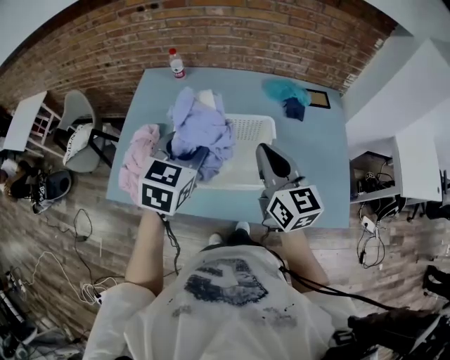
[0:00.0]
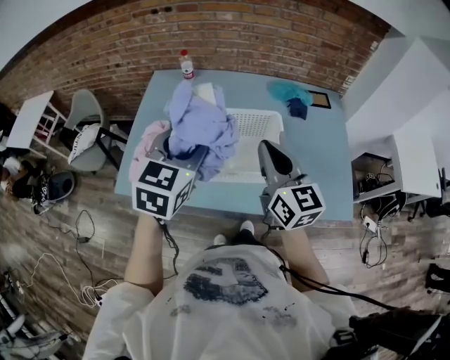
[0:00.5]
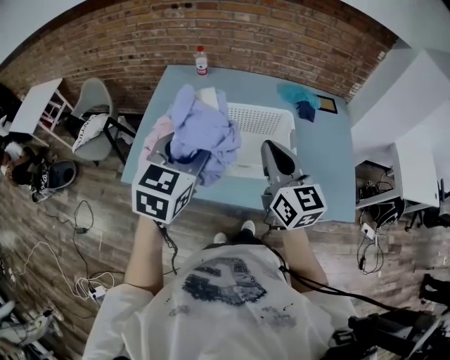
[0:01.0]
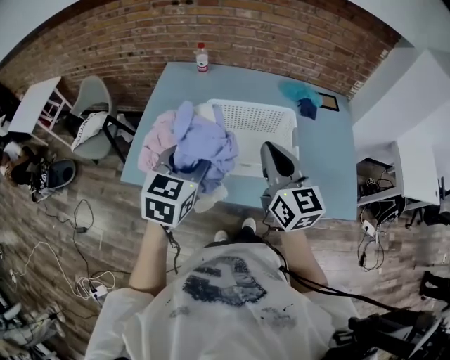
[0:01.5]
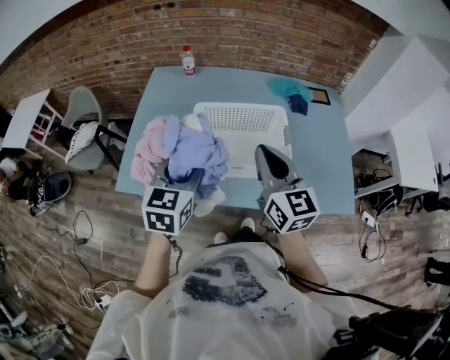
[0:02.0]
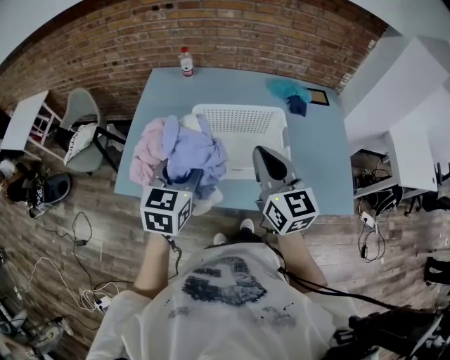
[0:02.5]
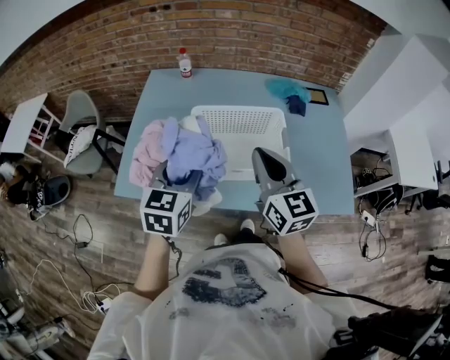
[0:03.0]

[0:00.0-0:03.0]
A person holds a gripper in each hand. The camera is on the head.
0:00.0 to 0:01.5: The left gripper is displaced backward and to the left by about 15 cm. Meanwhile the right gripper goes about 15 cm to the left and backward.
0:01.5 to 0:03.0: There are only small adjustments of the grippers.

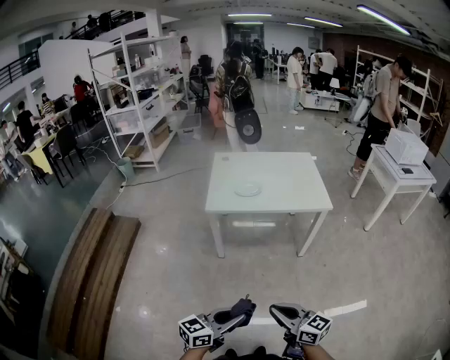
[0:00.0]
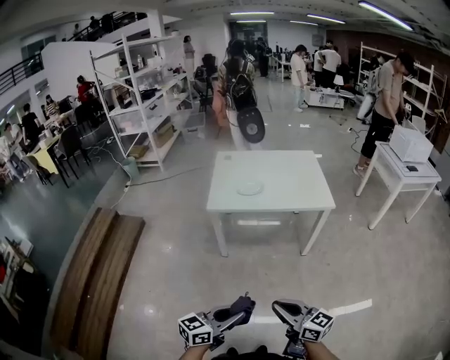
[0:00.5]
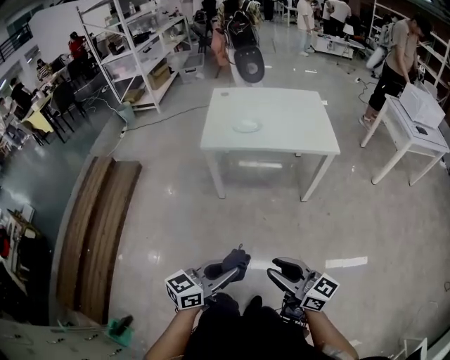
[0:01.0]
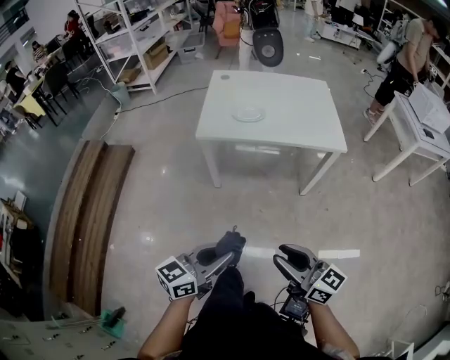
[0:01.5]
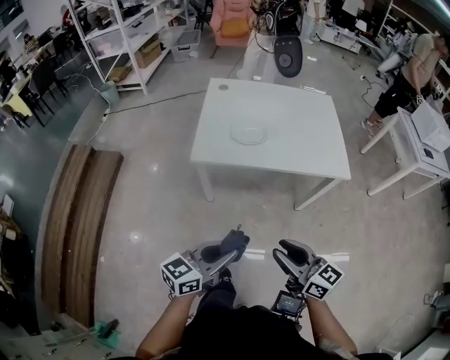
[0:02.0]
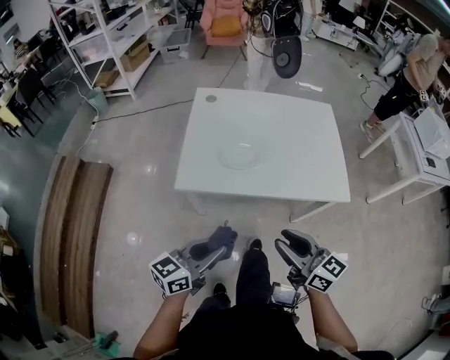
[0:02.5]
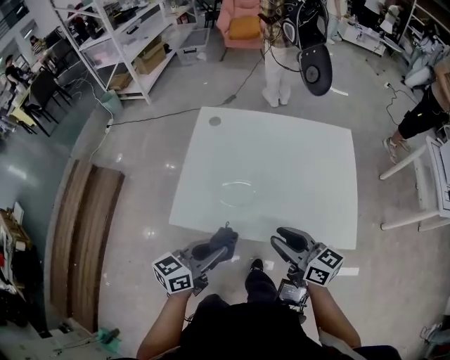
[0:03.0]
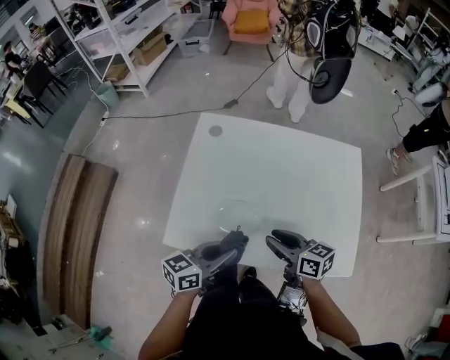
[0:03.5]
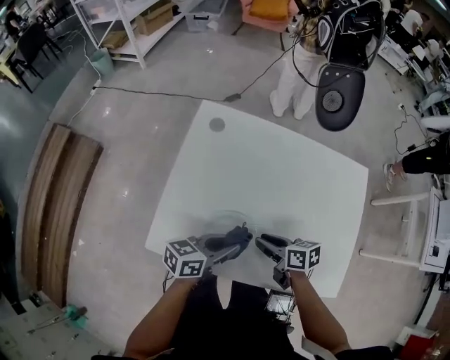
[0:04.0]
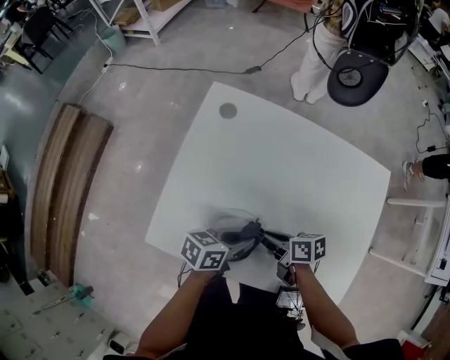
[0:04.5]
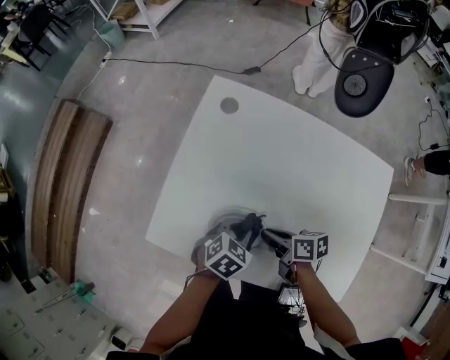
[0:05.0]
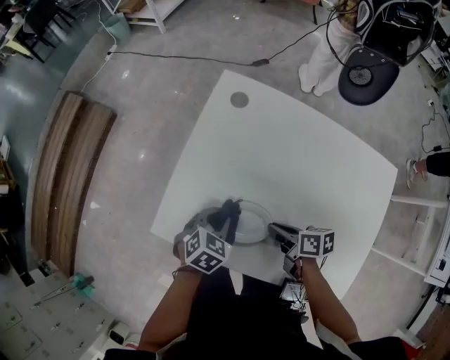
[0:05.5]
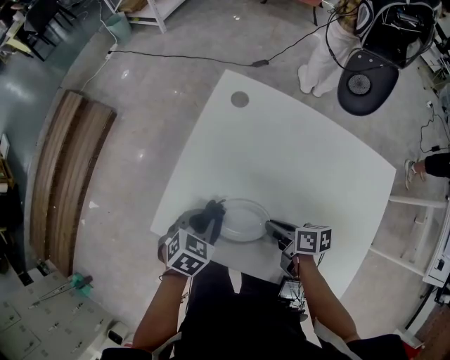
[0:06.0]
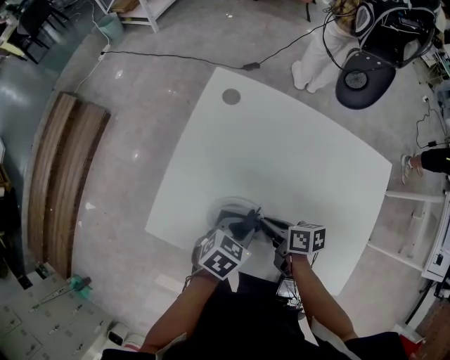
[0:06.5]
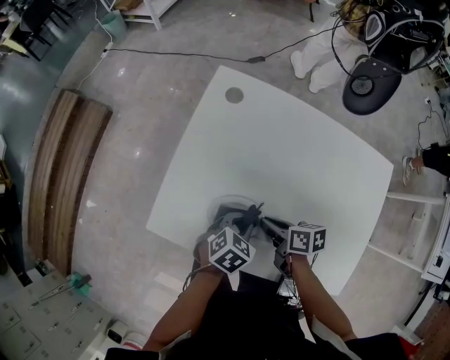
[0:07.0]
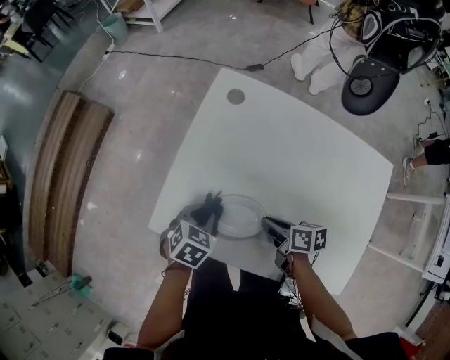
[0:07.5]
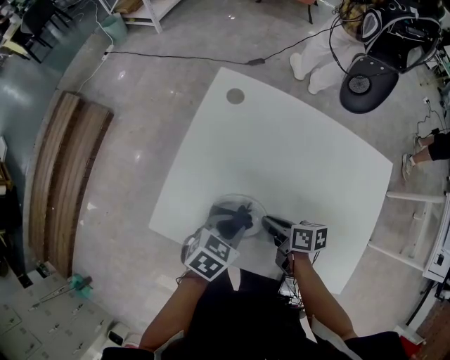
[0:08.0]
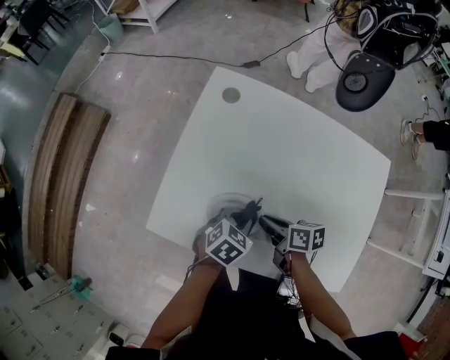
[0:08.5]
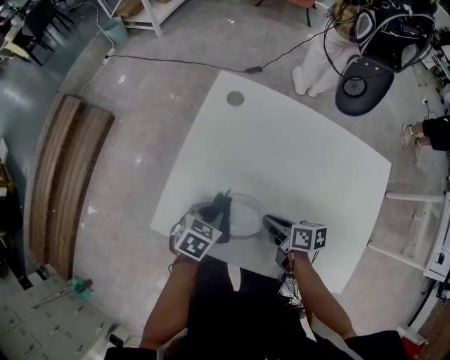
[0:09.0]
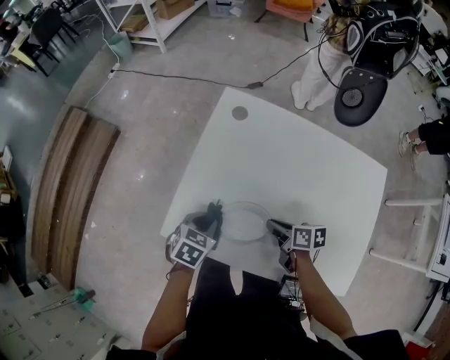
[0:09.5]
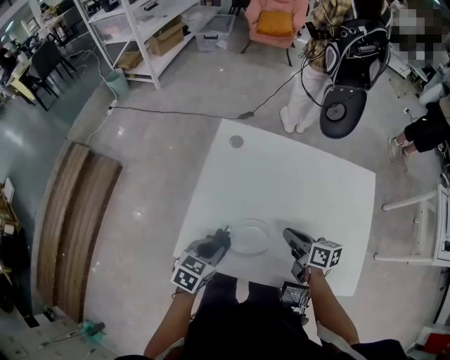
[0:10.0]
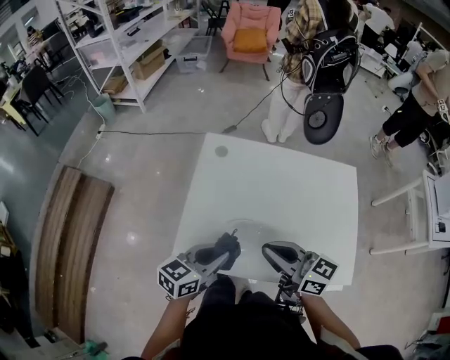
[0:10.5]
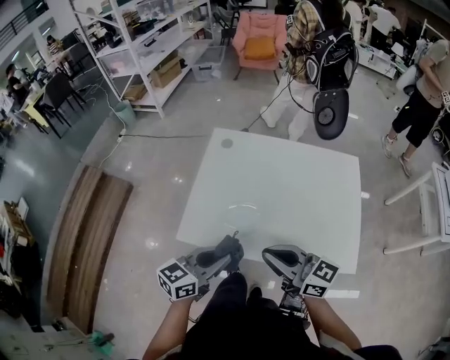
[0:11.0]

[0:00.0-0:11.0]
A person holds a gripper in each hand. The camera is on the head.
0:00.0 to 0:02.0: The two grippers go some 30 cm forward. The right gripper opens.
0:02.0 to 0:03.5: Both grippers are carried forward, roughly 50 cm. The right gripper turns by approximately 20 degrees.
0:03.5 to 0:05.5: Both grippers move downward, roughly 15 cm. The right gripper rotates about 40 degrees, and closes its fingers; the left gripper points its fingers roughly 50 degrees further downward.
0:07.5 to 0:09.0: The left gripper moves approximately 15 cm to the right and comes back.
0:09.0 to 0:11.0: Both grippers travel together upward and backward, some 40 cm. The right gripper angles its fingers upward, by some 40 degrees; the left gripper angles its fingers upward, by approximately 40 degrees.

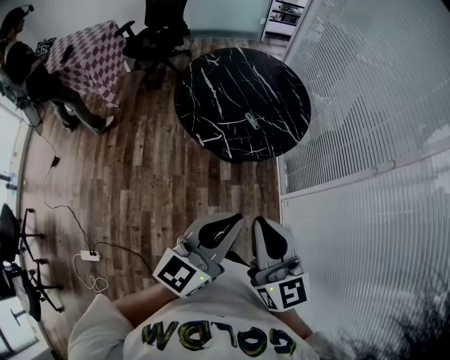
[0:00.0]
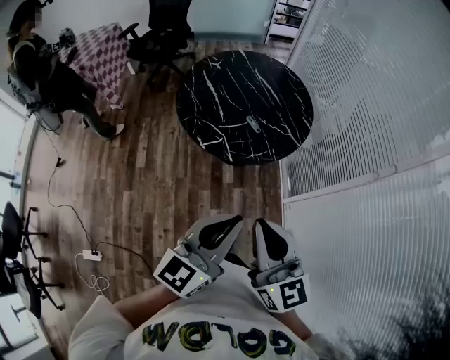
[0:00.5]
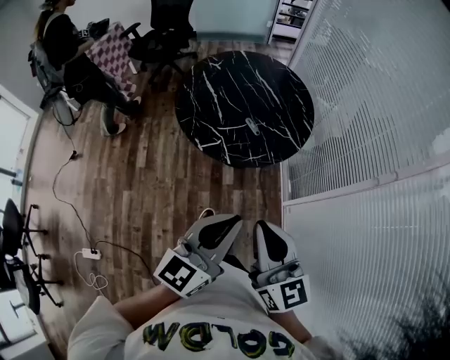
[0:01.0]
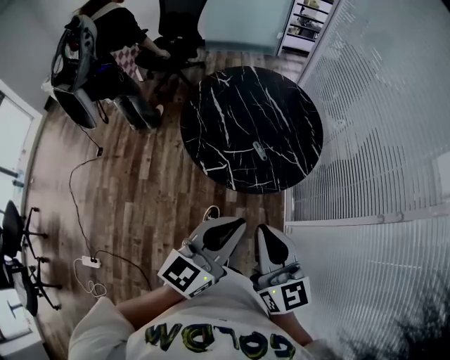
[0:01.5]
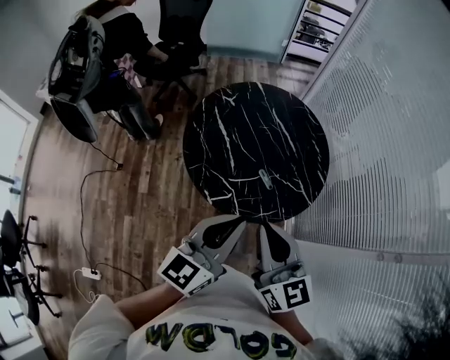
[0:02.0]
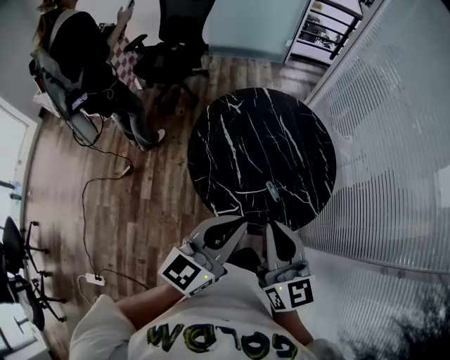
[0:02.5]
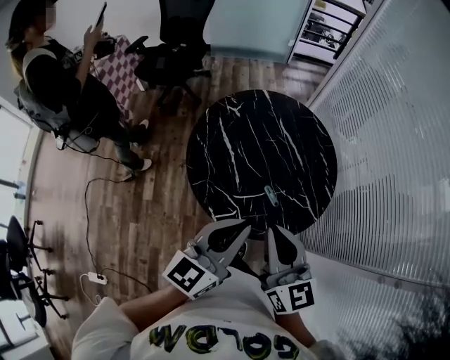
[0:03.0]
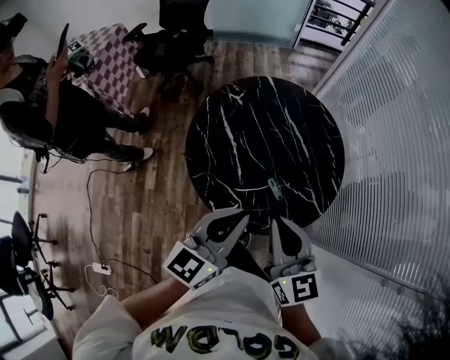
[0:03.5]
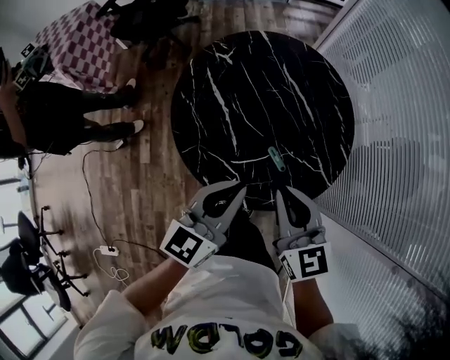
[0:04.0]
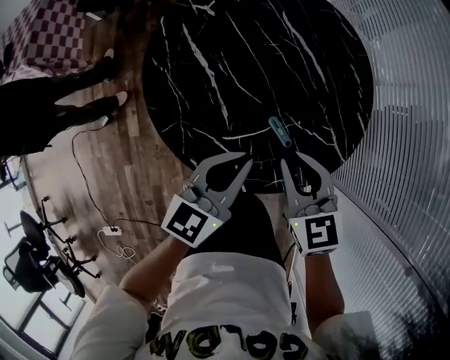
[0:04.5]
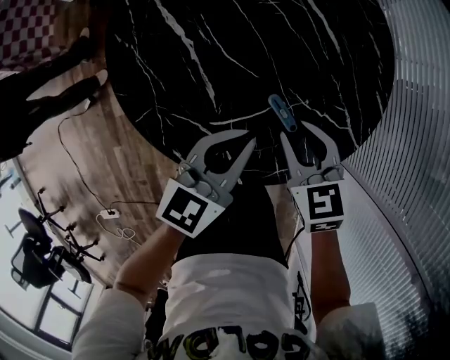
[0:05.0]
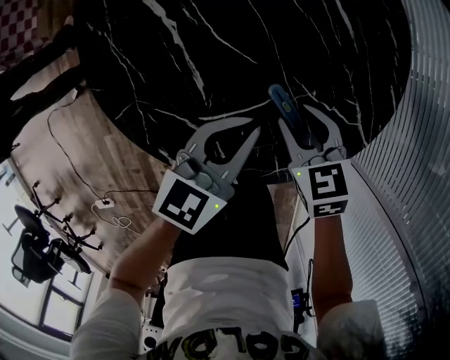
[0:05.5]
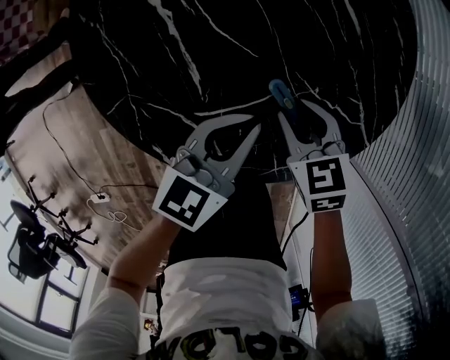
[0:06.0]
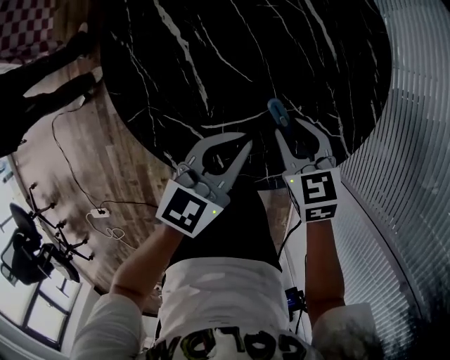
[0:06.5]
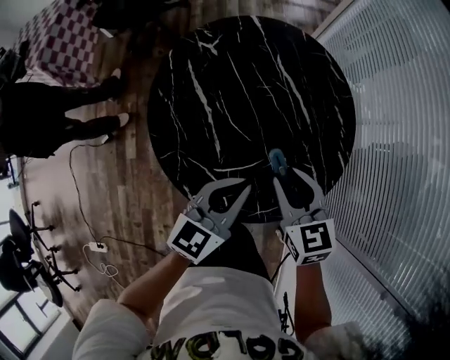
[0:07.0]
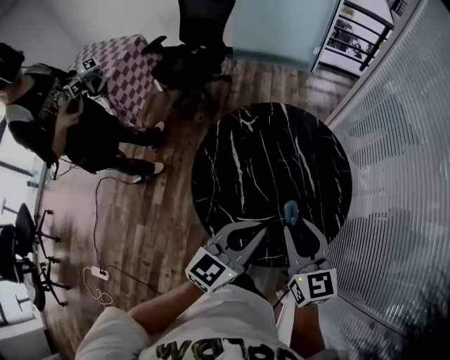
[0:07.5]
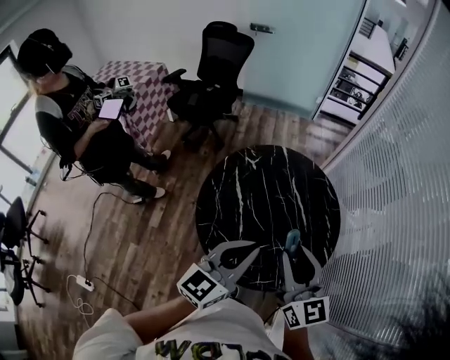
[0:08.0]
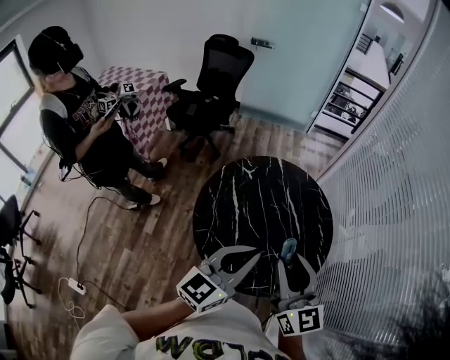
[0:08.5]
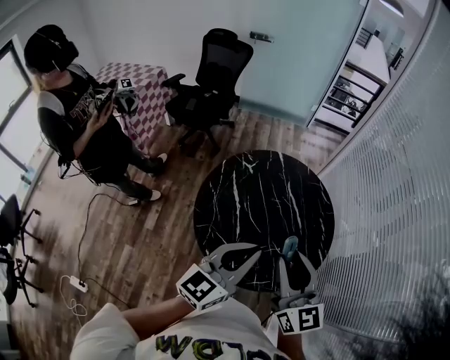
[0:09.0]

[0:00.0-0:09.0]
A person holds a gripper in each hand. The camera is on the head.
0:00.0 to 0:02.0: The two grippers go some 25 cm forward.
0:02.0 to 0:04.5: The grippers both shift downward and forward by roughly 35 cm. The right gripper angles its fingers downward, by roughly 30 degrees.
0:04.5 to 0:07.0: The right gripper travels downward and back again, roughly 20 cm each way. Meanwhile the left gripper reaches about 15 cm downward, then returns.
0:07.0 to 0:09.0: The two grippers go roughly 25 cm upward. The right gripper angles its fingers upward, by some 30 degrees.

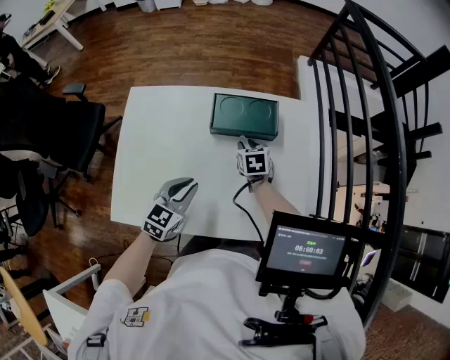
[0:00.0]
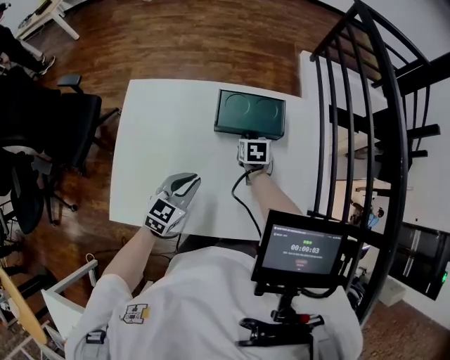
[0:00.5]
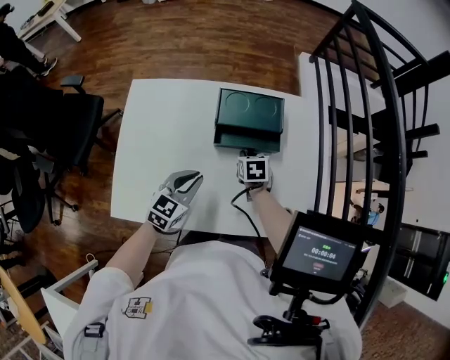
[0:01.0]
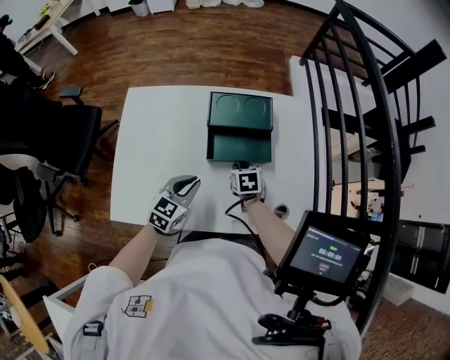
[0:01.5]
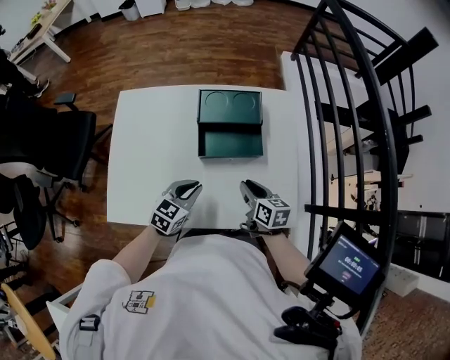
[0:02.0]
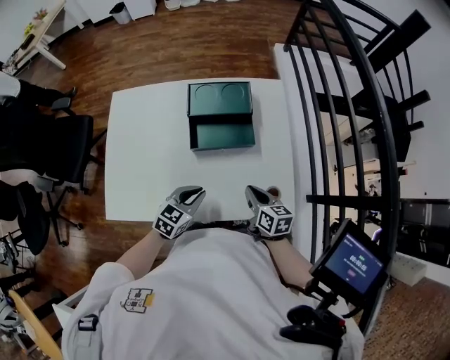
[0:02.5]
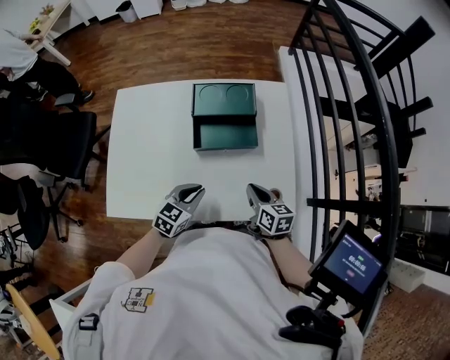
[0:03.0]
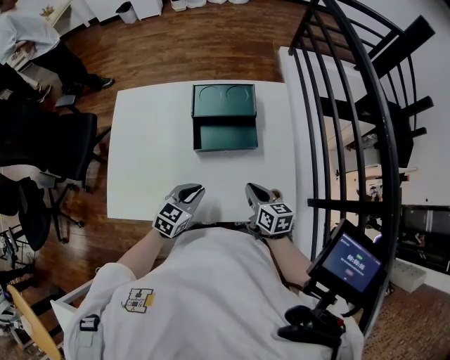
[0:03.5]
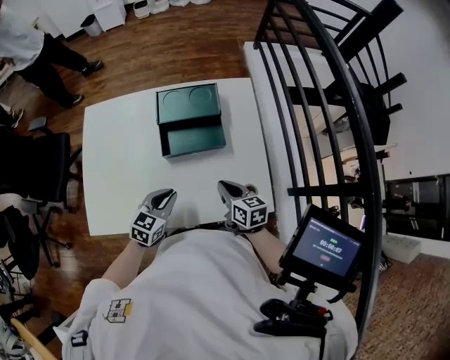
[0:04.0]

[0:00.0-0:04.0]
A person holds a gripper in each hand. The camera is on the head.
0:00.0 to 0:02.0: The left gripper changes place by about 5 cm; the right gripper goes about 15 cm backward and to the right, and changes its angle by about 30 degrees.
